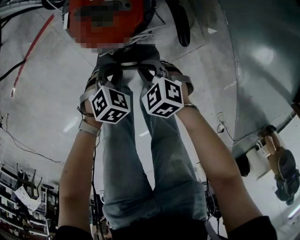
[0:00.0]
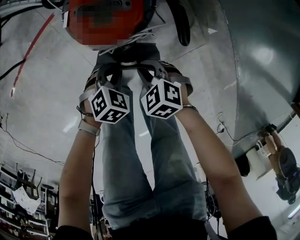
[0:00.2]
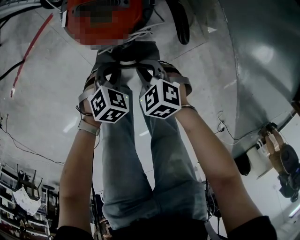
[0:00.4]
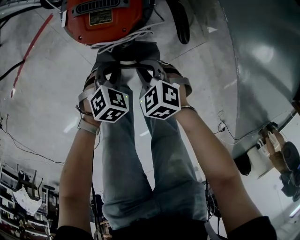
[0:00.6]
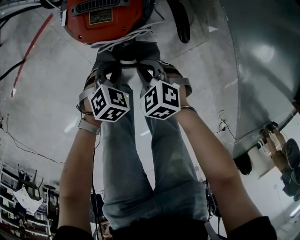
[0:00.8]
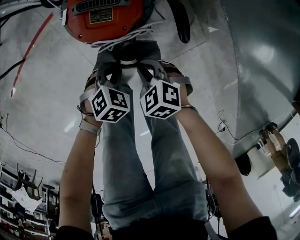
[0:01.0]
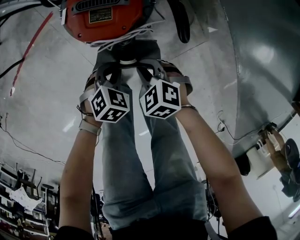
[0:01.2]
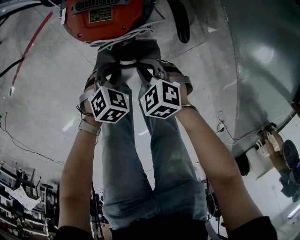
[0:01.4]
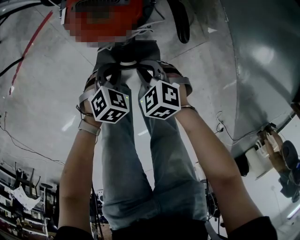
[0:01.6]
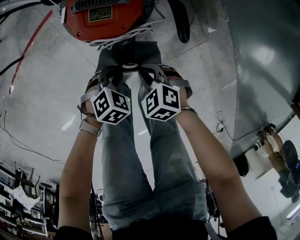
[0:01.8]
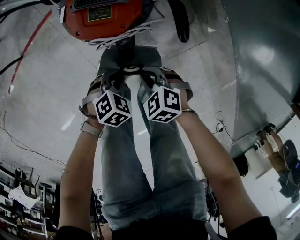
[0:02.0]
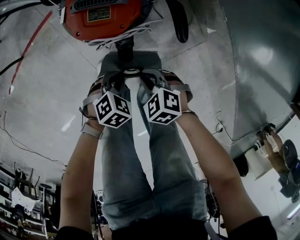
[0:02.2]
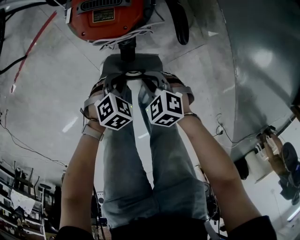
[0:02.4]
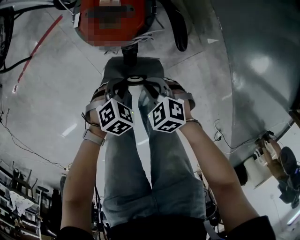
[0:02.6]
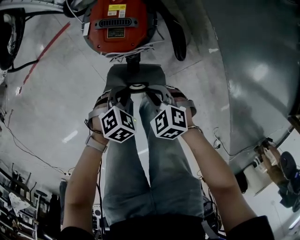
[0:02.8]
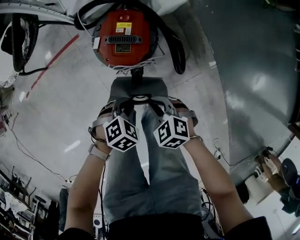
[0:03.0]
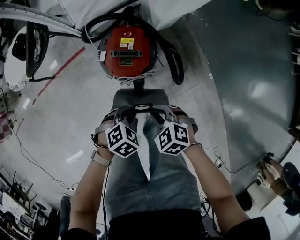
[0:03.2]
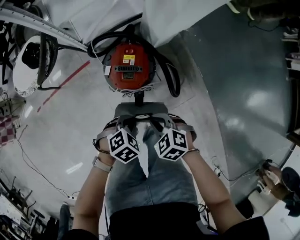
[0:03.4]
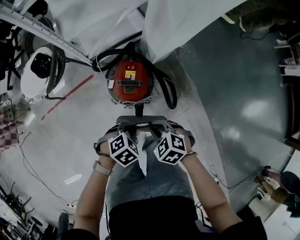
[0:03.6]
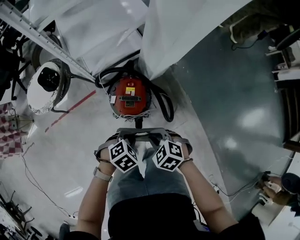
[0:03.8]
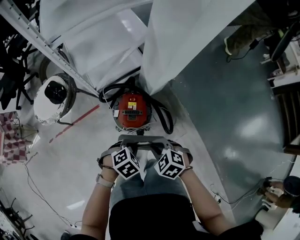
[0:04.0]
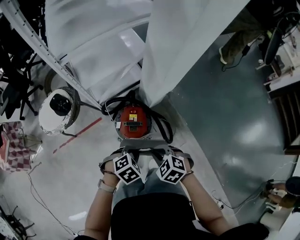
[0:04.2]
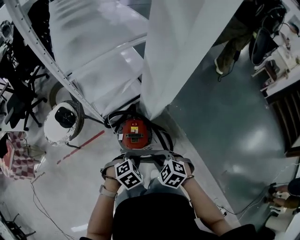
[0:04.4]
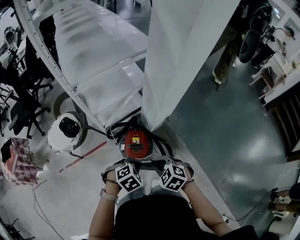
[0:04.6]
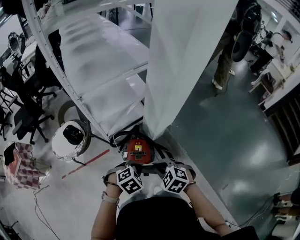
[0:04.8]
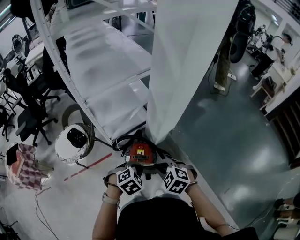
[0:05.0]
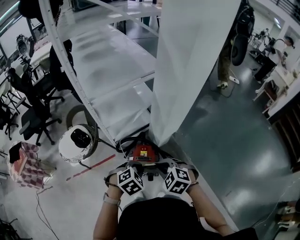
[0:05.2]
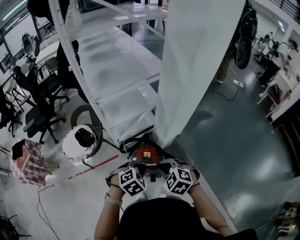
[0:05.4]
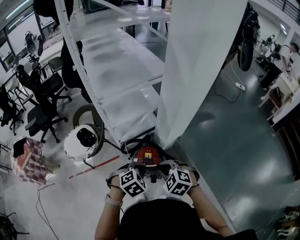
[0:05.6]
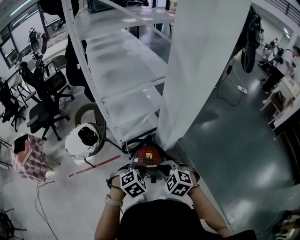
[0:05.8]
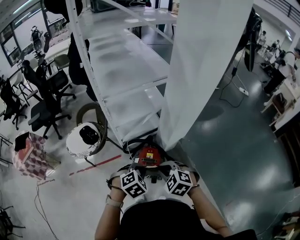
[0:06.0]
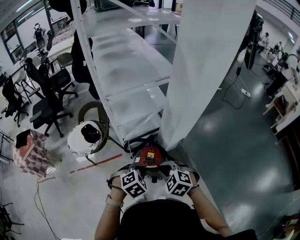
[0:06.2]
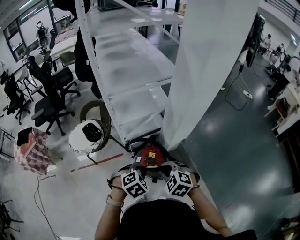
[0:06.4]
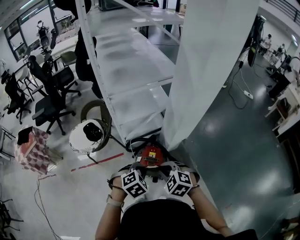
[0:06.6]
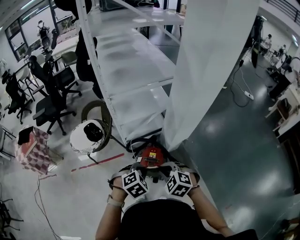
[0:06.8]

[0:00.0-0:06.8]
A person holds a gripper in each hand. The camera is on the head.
0:00.0 to 0:01.4: There are only small adjustments of the grippers.
0:01.4 to 0:02.8: The two grippers go some 10 cm upward.
0:02.8 to 0:04.0: Both grippers travel together upward, about 35 cm.
0:04.0 to 0:05.4: The grippers both shift upward by about 25 cm.
0:05.4 to 0:06.8: The grippers move only a little.

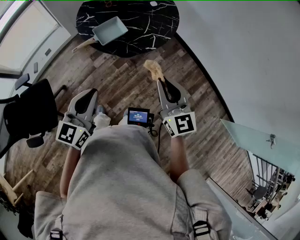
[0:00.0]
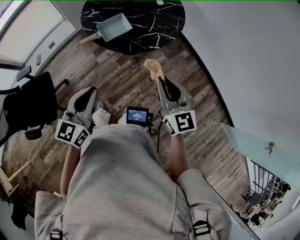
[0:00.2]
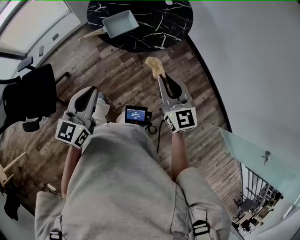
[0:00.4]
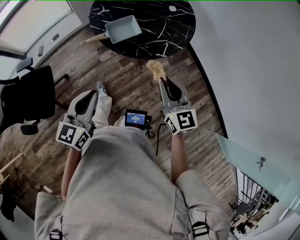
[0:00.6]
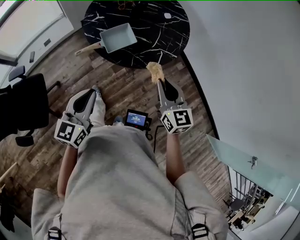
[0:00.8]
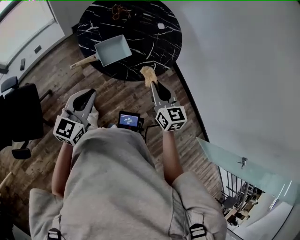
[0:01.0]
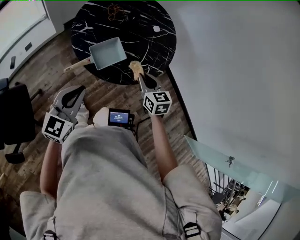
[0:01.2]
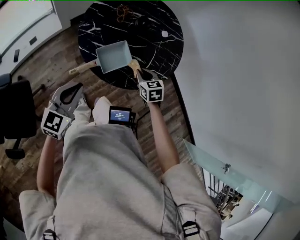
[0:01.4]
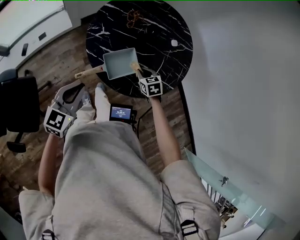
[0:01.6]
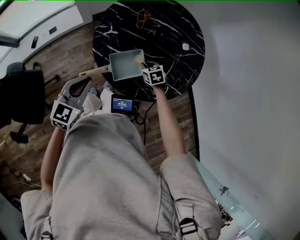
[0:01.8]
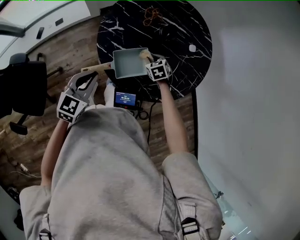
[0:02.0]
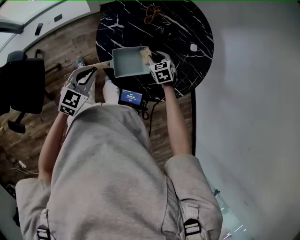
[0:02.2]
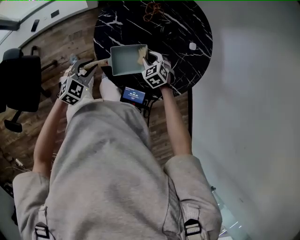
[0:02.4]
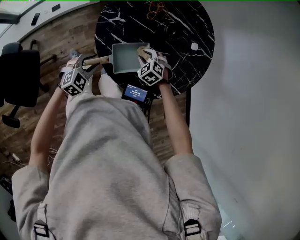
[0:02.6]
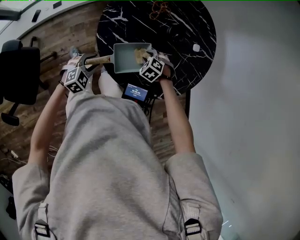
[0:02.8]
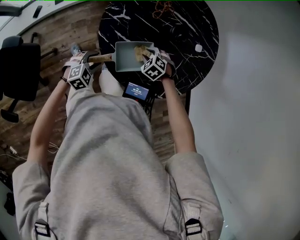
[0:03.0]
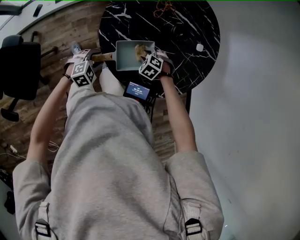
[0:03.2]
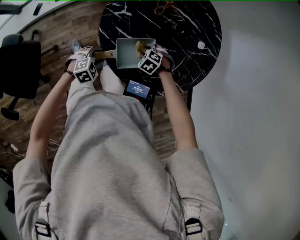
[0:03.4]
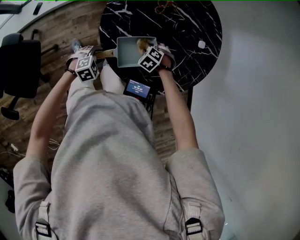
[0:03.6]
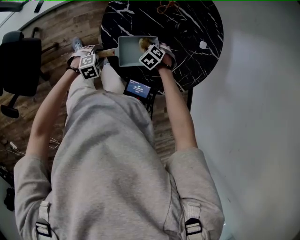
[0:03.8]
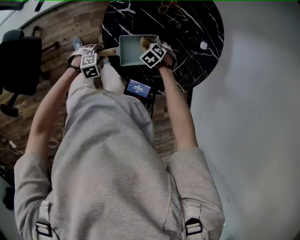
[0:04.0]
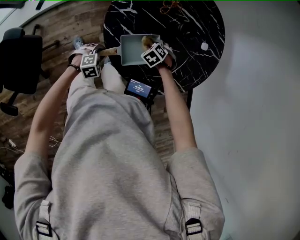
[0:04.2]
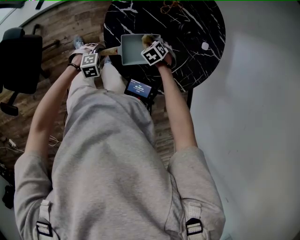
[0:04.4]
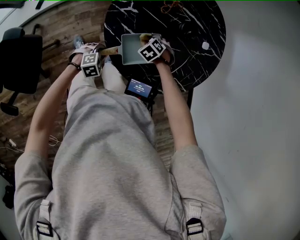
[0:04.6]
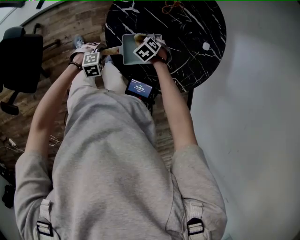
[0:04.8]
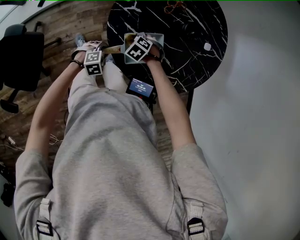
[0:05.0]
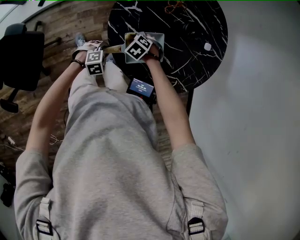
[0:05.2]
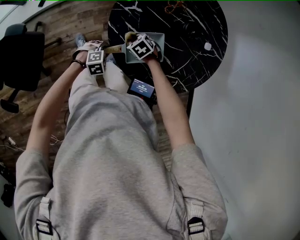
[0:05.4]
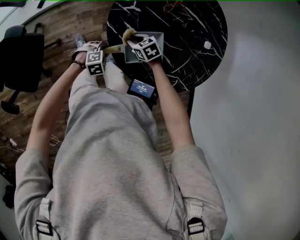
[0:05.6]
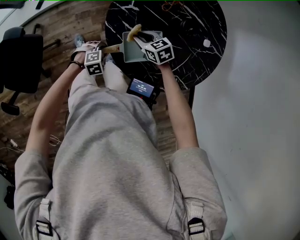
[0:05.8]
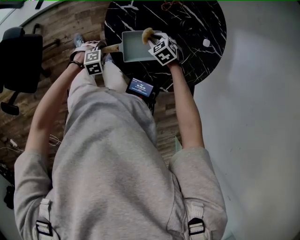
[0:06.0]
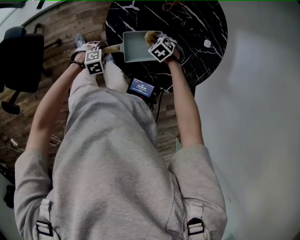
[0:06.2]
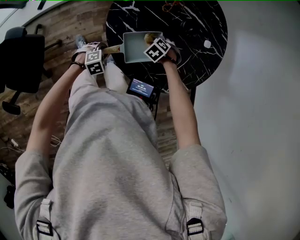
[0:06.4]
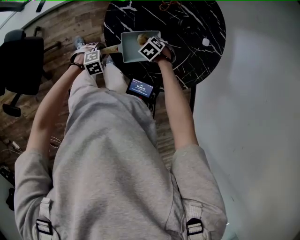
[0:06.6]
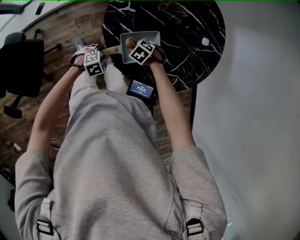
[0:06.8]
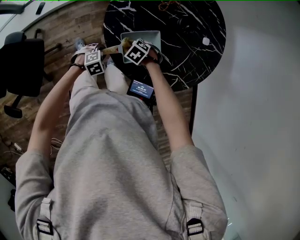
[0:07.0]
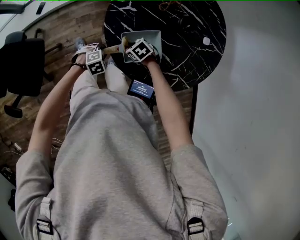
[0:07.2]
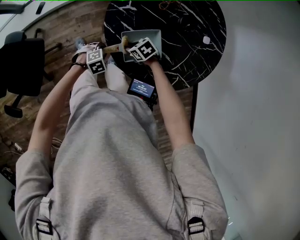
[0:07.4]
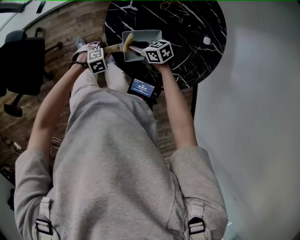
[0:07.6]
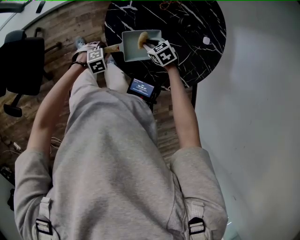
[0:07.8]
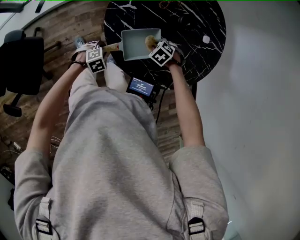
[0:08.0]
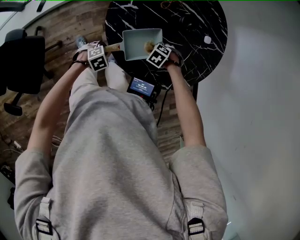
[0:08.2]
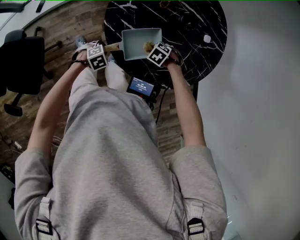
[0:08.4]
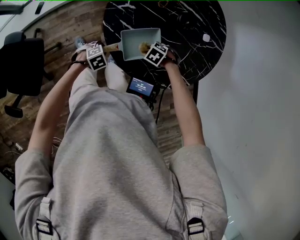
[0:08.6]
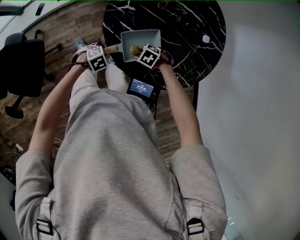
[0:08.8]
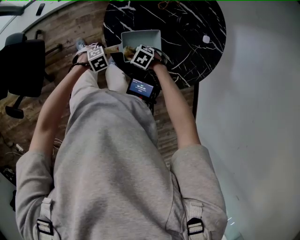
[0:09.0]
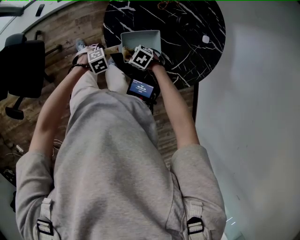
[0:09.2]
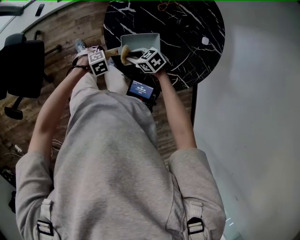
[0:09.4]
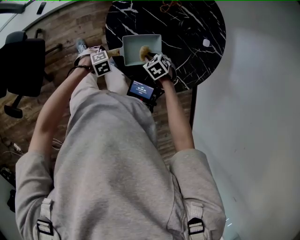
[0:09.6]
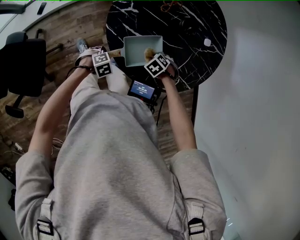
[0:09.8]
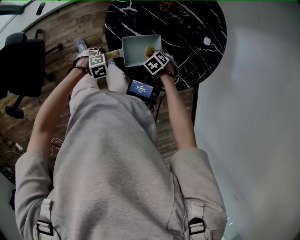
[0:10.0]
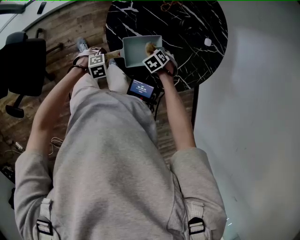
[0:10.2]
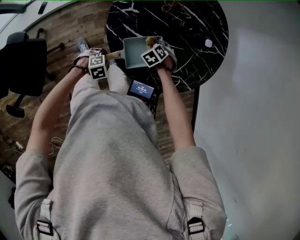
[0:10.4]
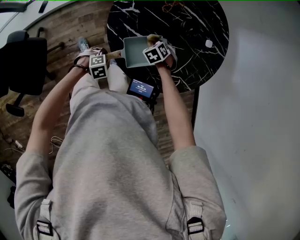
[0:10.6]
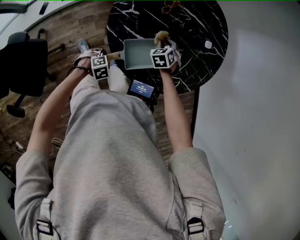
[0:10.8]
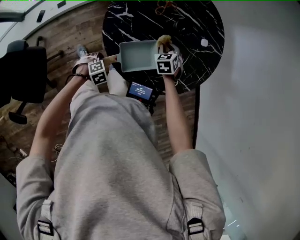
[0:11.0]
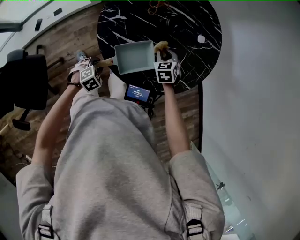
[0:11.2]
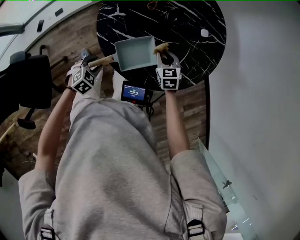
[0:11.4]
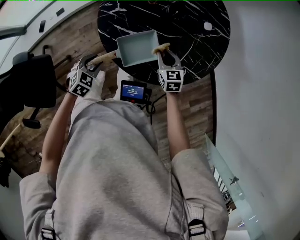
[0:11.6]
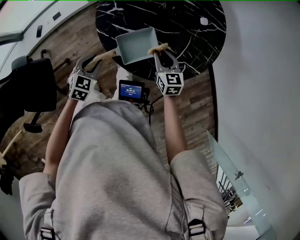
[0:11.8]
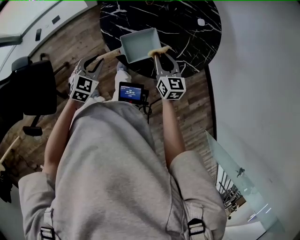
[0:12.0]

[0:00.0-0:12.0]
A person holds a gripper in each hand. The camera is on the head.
0:00.0 to 0:01.6: The left gripper heads forward and to the left, covering some 30 cm. Meanwhile the right gripper heads forward and downward, covering approximately 50 cm, and points its fingers approximately 50 degrees further downward.
0:01.6 to 0:03.0: The right gripper goes some 10 cm downward, rotates around the line of its fingers by some 50 degrees, counterclockwise from behind, and opens its fingers; the left gripper heads downward, covering some 25 cm, points its fingers some 30 degrees further downward, and opens.
0:03.0 to 0:04.4: The left gripper moves downward, approximately 5 cm, and closes.
0:06.0 to 0:07.6: The right gripper moves roughly 10 cm, and swivels some 40 degrees.
0:07.6 to 0:09.0: The right gripper tilts its fingers some 30 degrees downward.
0:09.0 to 0:10.4: The right gripper shifts by about 15 cm, and swivels some 30 degrees.
0:10.4 to 0:12.0: Both grippers move upward, approximately 20 cm. The right gripper tilts its fingers approximately 50 degrees upward, while the left gripper points its fingers roughly 30 degrees further upward.

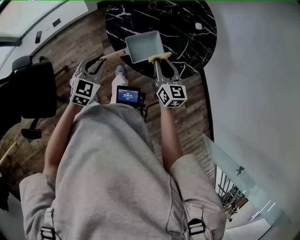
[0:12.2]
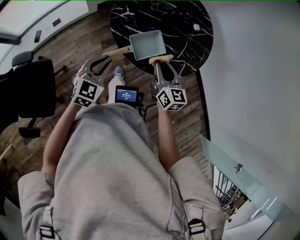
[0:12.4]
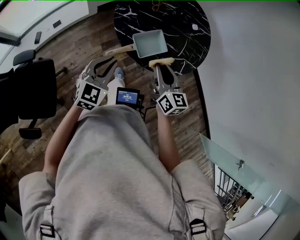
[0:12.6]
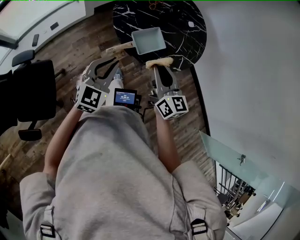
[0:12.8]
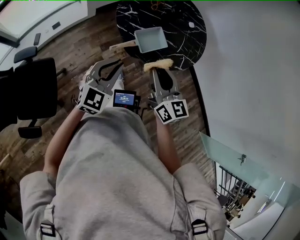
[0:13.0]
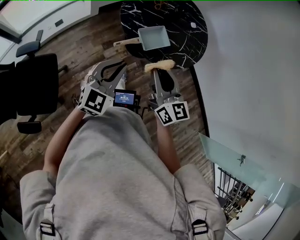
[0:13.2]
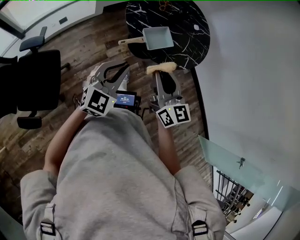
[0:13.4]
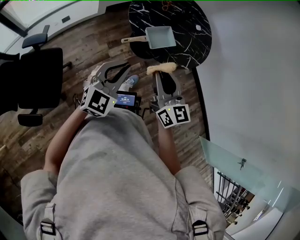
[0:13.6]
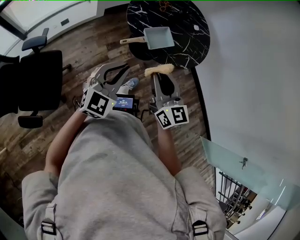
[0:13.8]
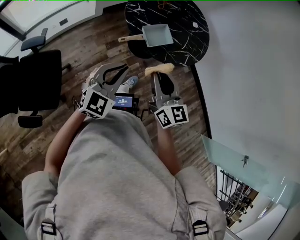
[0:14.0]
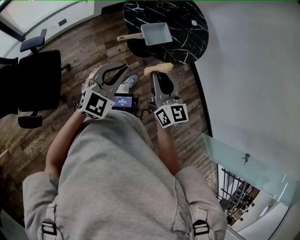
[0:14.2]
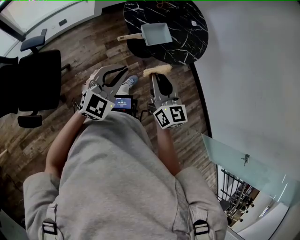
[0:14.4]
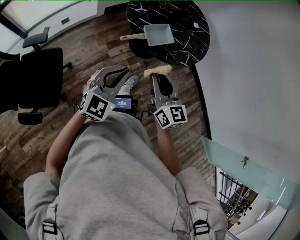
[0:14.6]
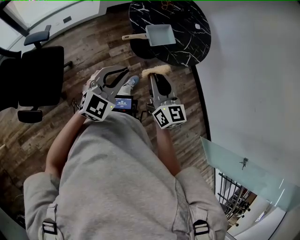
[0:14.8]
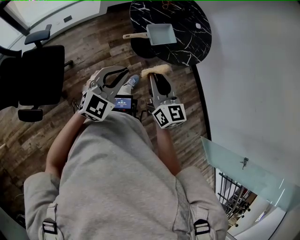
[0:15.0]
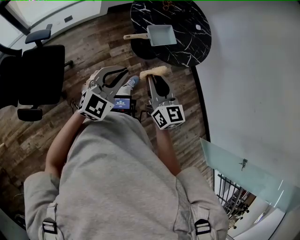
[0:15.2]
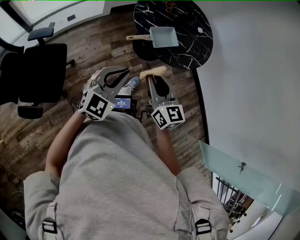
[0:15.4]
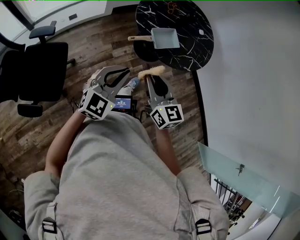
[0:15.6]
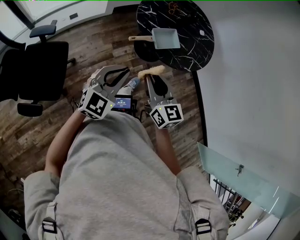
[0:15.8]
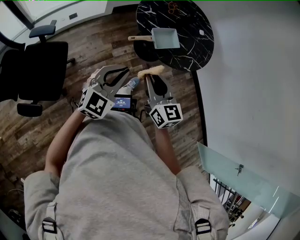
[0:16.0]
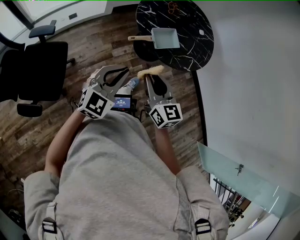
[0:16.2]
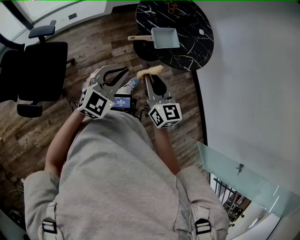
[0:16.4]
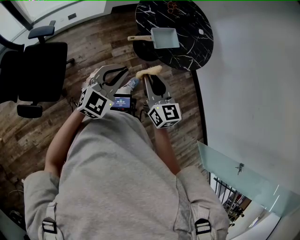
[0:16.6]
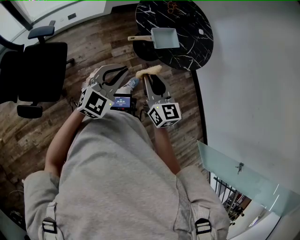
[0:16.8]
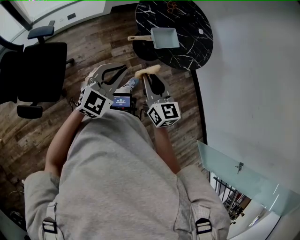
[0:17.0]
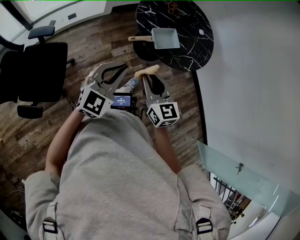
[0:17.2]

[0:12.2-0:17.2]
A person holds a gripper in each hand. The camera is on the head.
0:12.2 to 0:13.8: The right gripper is displaced backward, to the left and upward by about 30 cm; the left gripper travels backward and upward by approximately 25 cm, and rotates roughly 30 degrees.
0:13.8 to 0:15.6: The right gripper ends up about 5 cm from where it was.
0:15.6 to 0:17.2: The grippers stay close to where they were, moving slightly.
